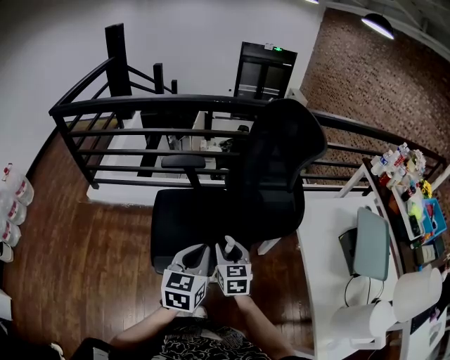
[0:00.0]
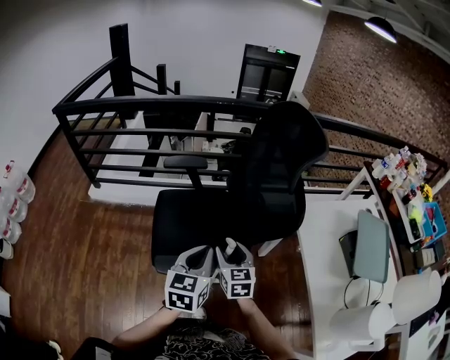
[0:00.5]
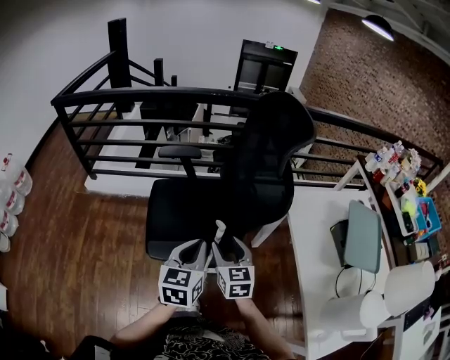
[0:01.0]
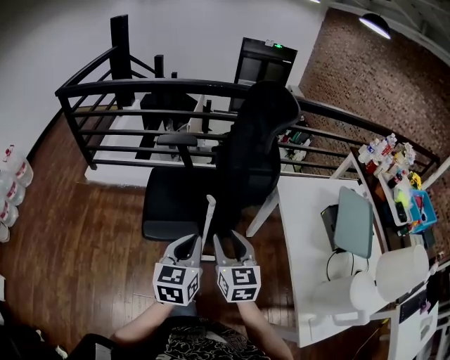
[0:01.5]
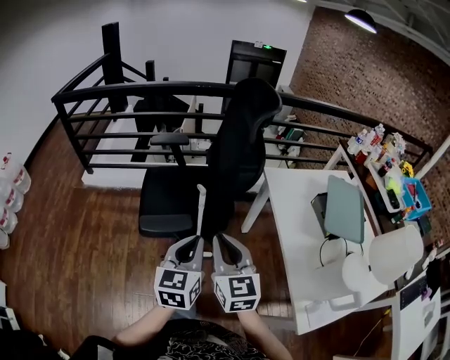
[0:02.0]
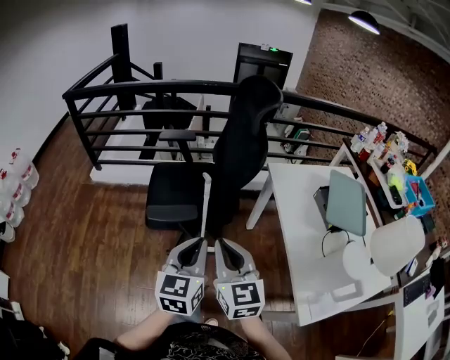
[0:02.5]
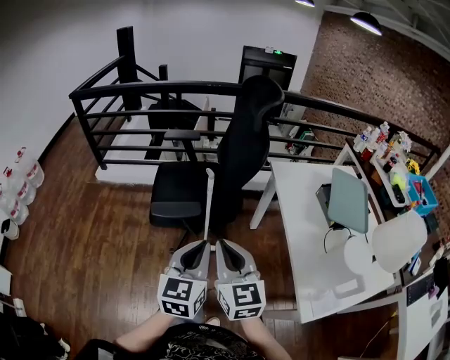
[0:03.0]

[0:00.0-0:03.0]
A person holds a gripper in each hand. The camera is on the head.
0:00.0 to 0:01.5: The left gripper moves backward, some 10 cm. Meanwhile the right gripper goes about 20 cm backward and upward.
0:01.5 to 0:03.0: Both grippers travel together backward, some 15 cm. The right gripper closes up.

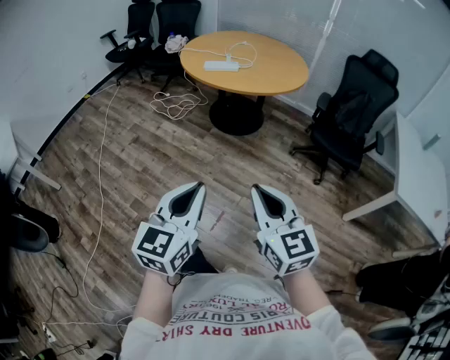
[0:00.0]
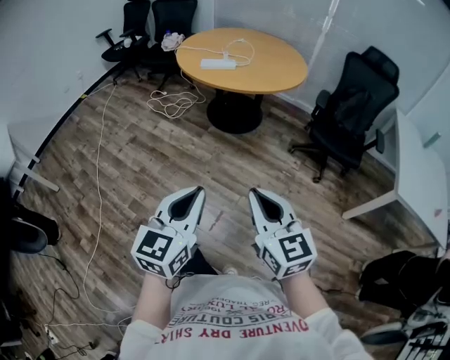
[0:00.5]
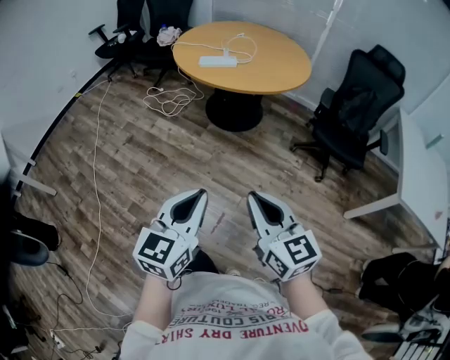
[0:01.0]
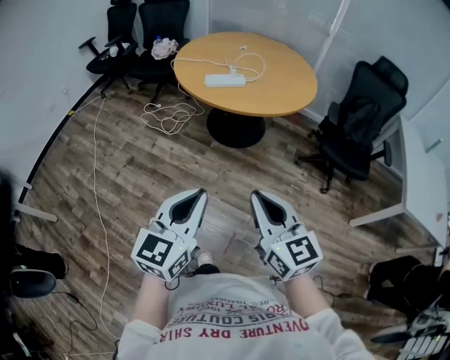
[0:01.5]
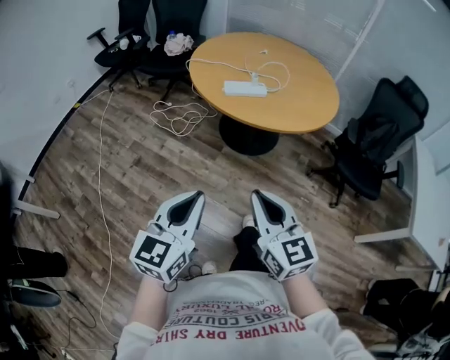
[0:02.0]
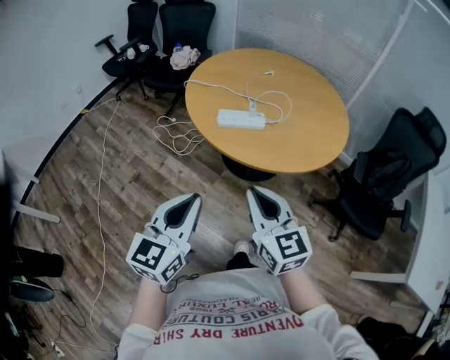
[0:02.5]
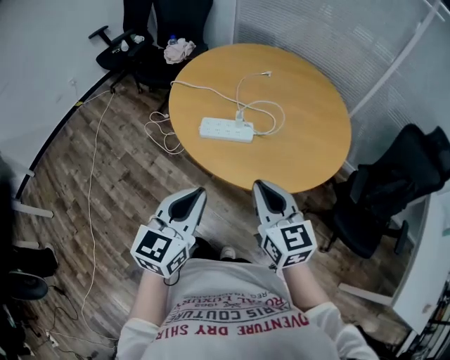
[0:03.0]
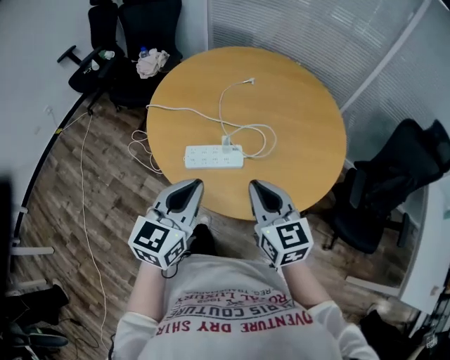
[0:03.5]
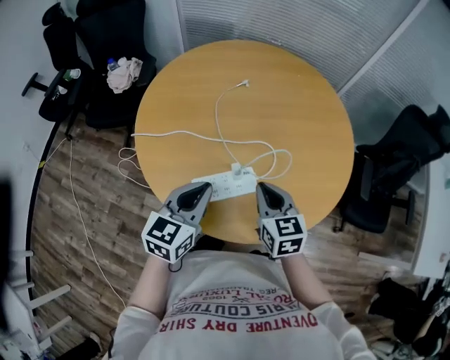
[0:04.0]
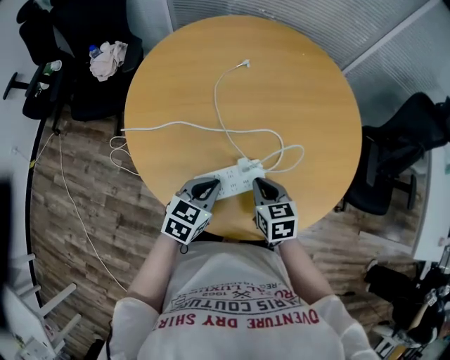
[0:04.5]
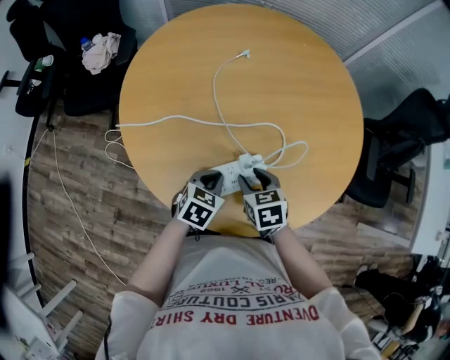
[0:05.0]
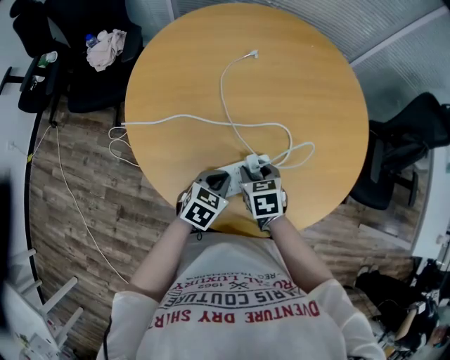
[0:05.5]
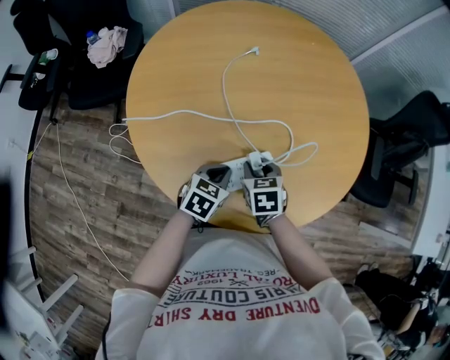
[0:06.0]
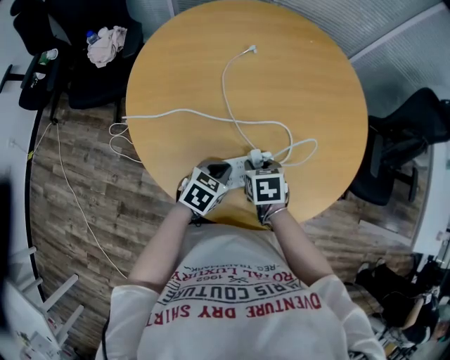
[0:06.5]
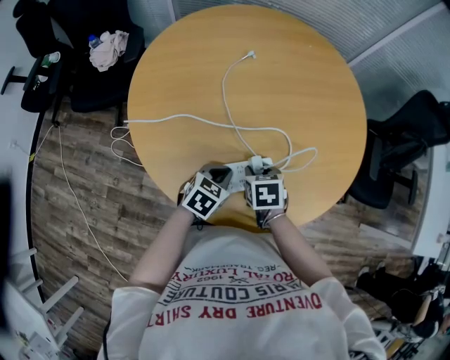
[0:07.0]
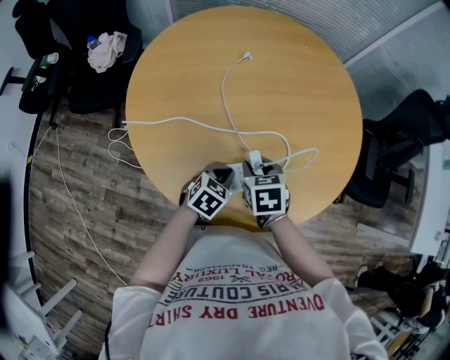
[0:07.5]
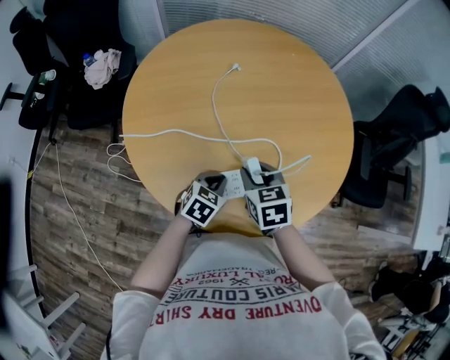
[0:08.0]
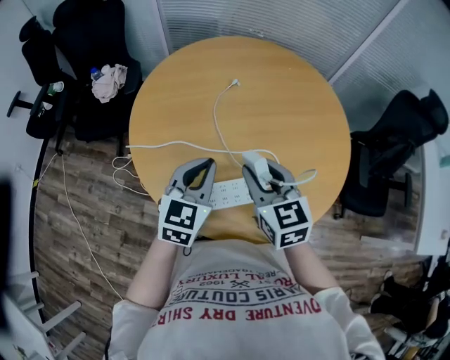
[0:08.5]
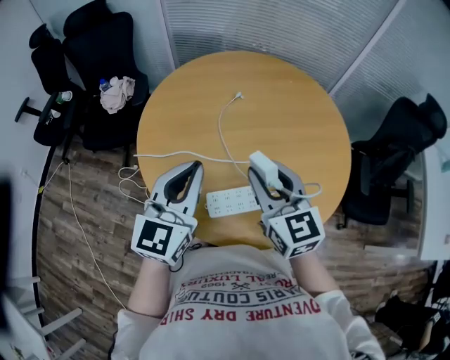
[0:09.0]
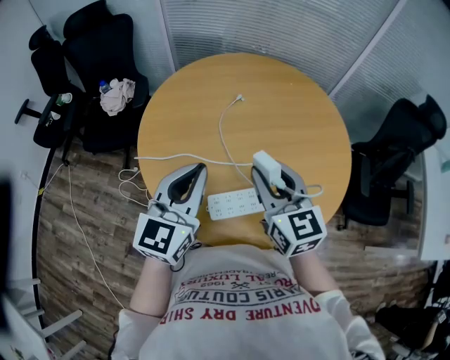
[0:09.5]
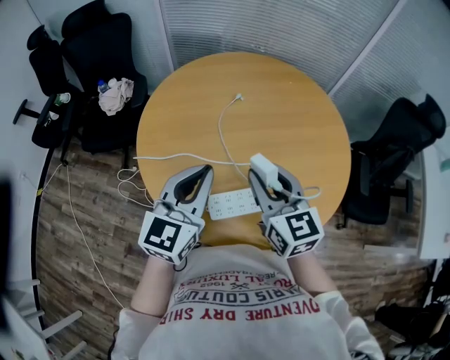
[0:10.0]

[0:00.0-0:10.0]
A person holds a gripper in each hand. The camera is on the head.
0:00.0 to 0:02.0: The grippers both shift forward and to the left by roughly 35 cm.
0:02.0 to 0:04.0: The two grippers travel together, forward, about 60 cm. The right gripper swivels about 30 degrees.
0:04.0 to 0:06.0: The left gripper moves downward, roughly 20 cm, and swivels roughly 30 degrees. Meanwhile the right gripper heads downward and to the left, covering some 15 cm, turns by approximately 30 degrees, and opens.
0:06.0 to 0:08.0: The right gripper travels upward by about 10 cm.
0:08.0 to 0:10.0: The right gripper is displaced upward by about 20 cm, and points its fingers approximately 30 degrees further upward, while the left gripper travels upward by some 30 cm, and angles its fingers upward, by some 40 degrees.

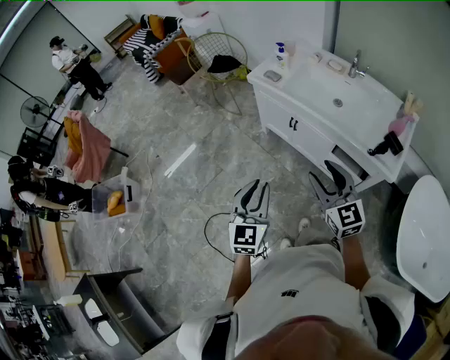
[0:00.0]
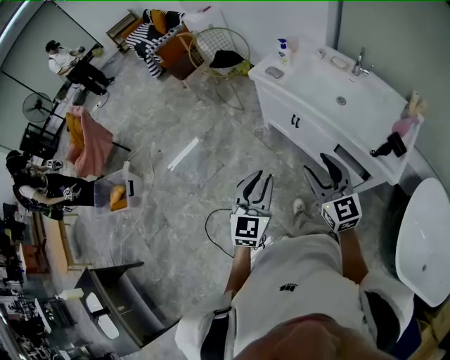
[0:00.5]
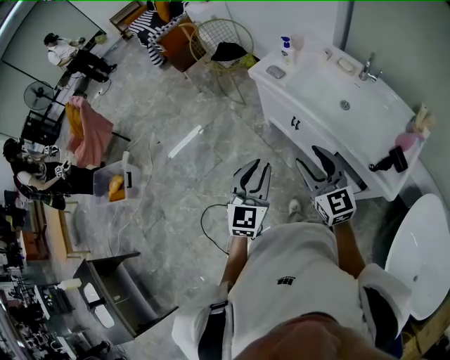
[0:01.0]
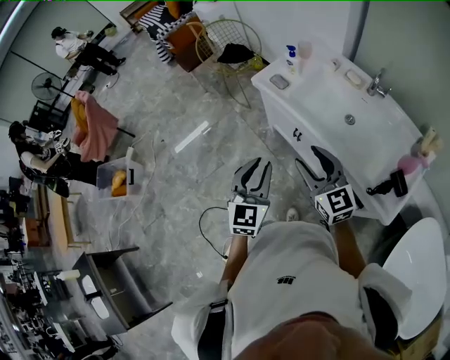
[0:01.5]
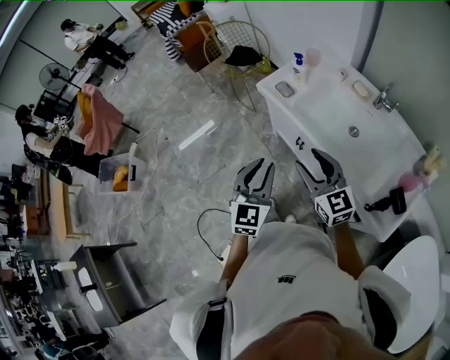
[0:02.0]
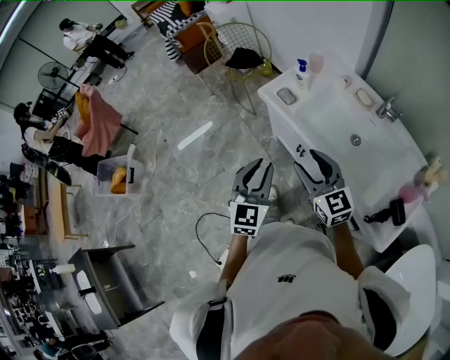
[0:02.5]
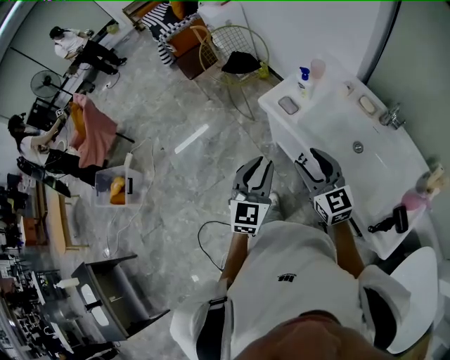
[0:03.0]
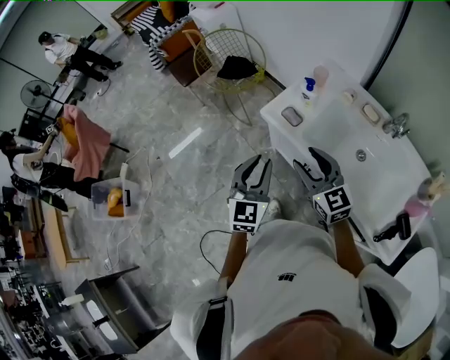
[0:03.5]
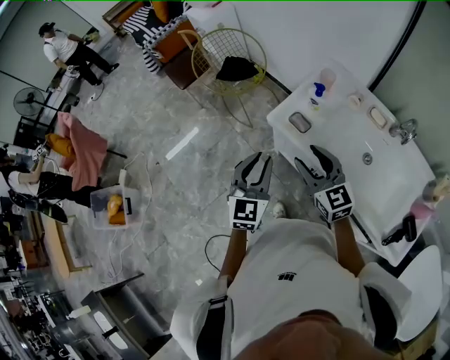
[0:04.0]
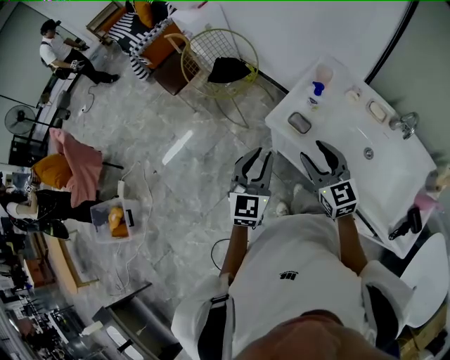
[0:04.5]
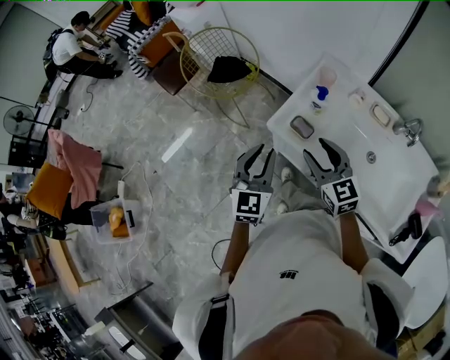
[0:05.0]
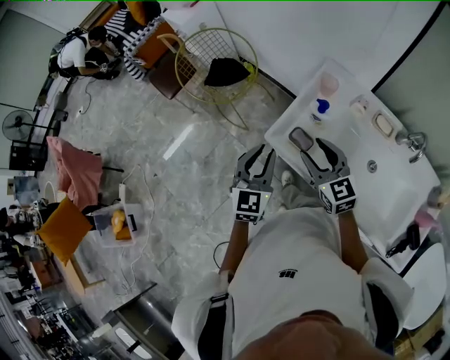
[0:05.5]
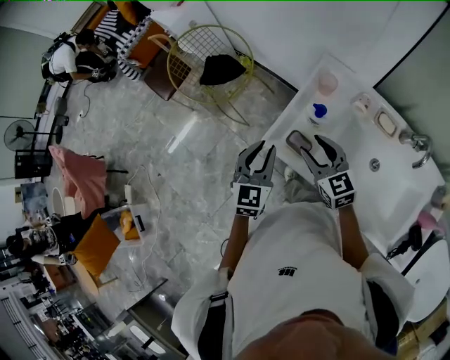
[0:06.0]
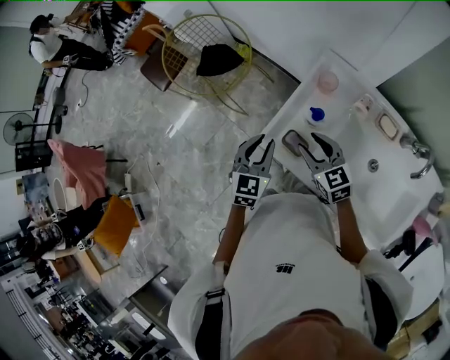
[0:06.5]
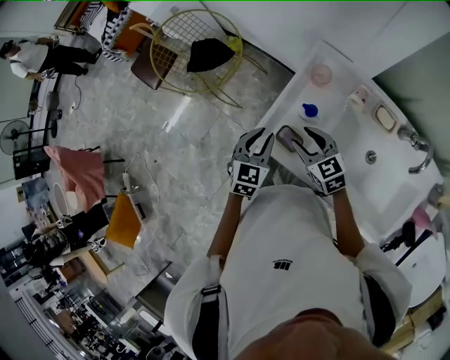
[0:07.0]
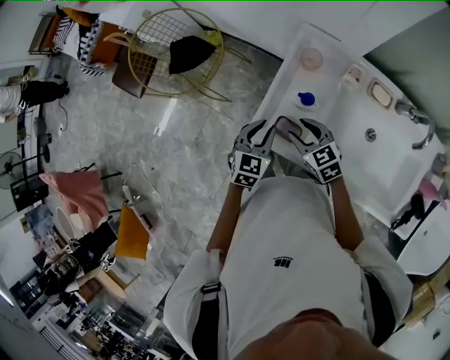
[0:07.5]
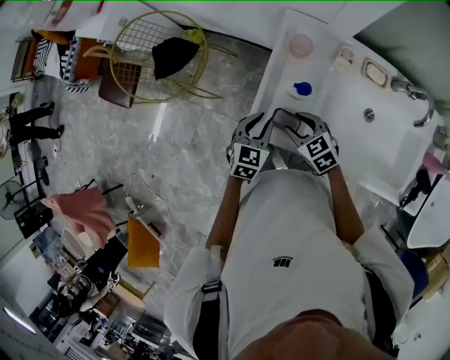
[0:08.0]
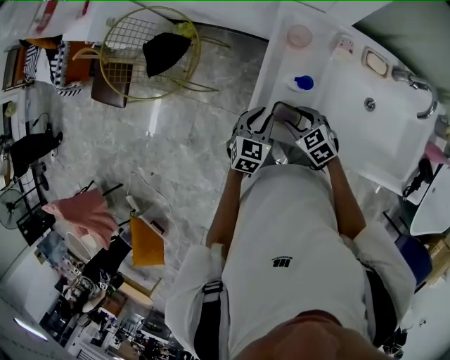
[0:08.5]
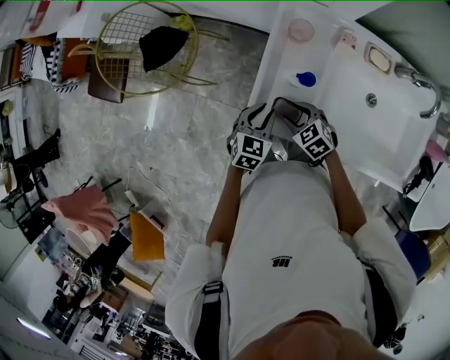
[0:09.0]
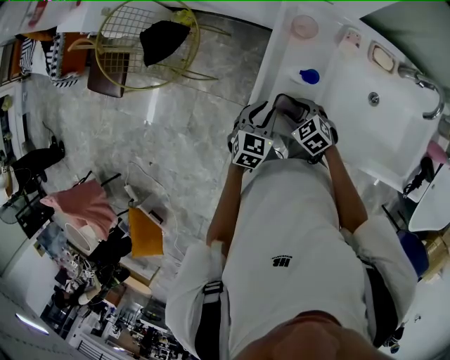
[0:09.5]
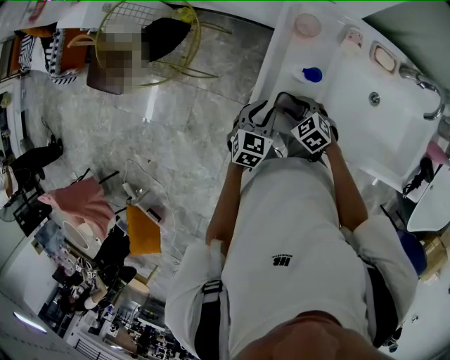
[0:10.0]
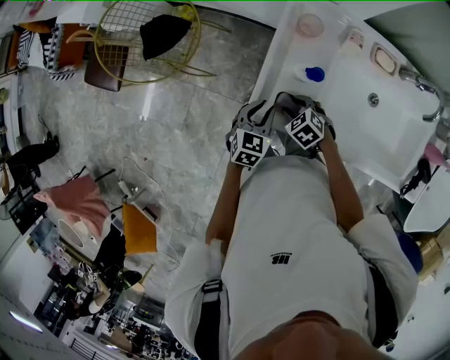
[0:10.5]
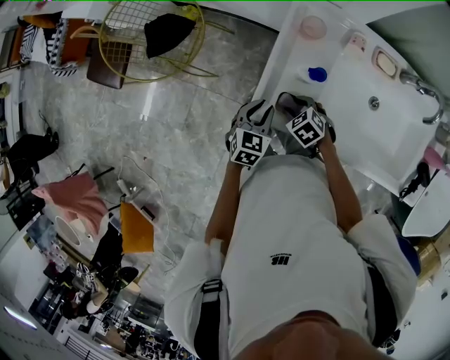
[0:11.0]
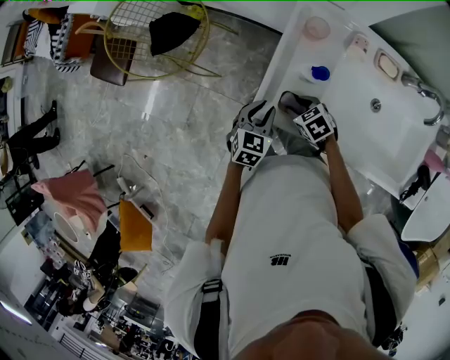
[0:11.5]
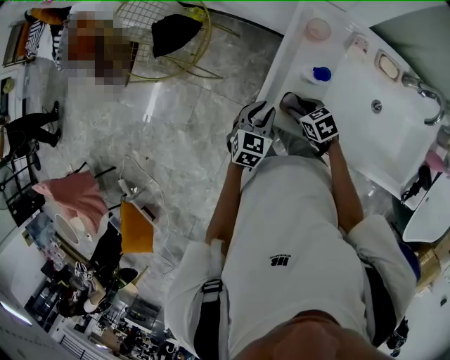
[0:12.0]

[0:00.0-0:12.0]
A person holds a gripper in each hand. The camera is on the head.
0:00.0 to 0:02.0: The right gripper shifts approximately 25 cm forward; the left gripper is displaced forward and to the right by approximately 25 cm.
0:02.0 to 0:04.0: The two grippers go approximately 25 cm forward.
0:04.0 to 0:06.0: The right gripper moves forward and downward, about 20 cm, while the left gripper travels forward by about 20 cm.
0:06.0 to 0:08.0: The right gripper shifts roughly 15 cm downward, and swivels about 30 degrees. Meanwhile the left gripper shifts about 15 cm downward and forward, and swivels roughly 30 degrees.
0:08.0 to 0:10.0: The right gripper moves downward, about 10 cm.
0:10.0 to 0:12.0: The right gripper rotates approximately 20 degrees.

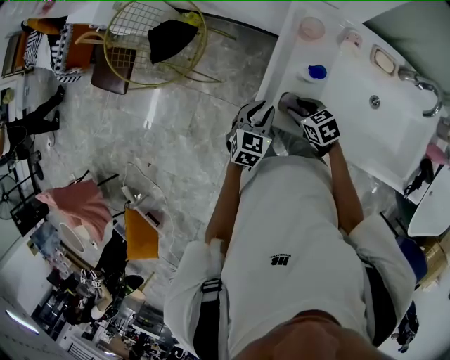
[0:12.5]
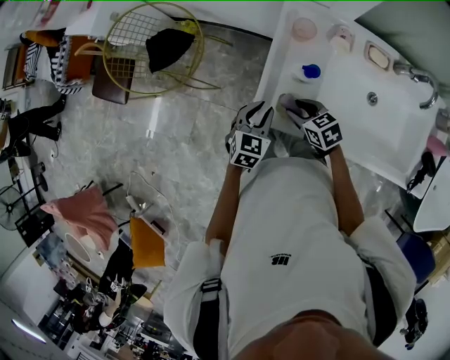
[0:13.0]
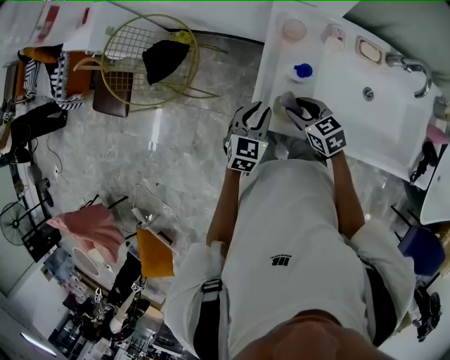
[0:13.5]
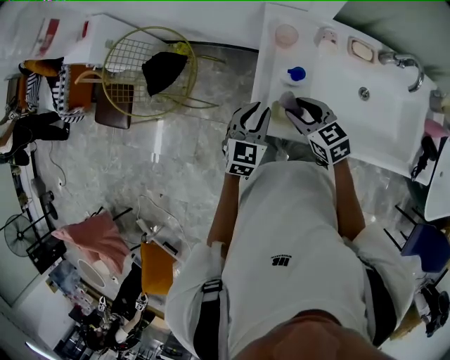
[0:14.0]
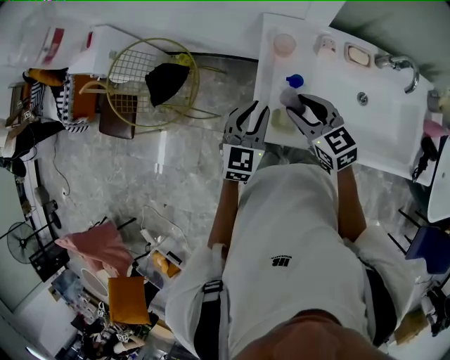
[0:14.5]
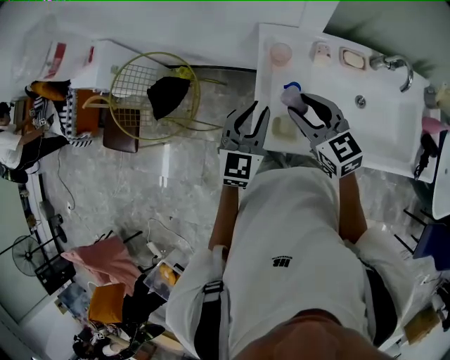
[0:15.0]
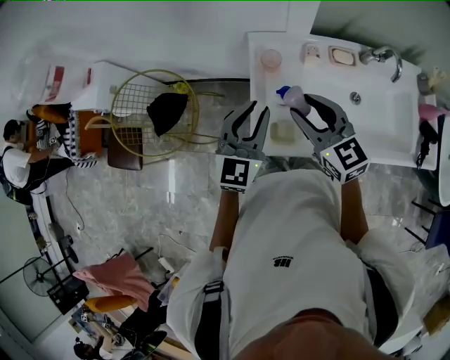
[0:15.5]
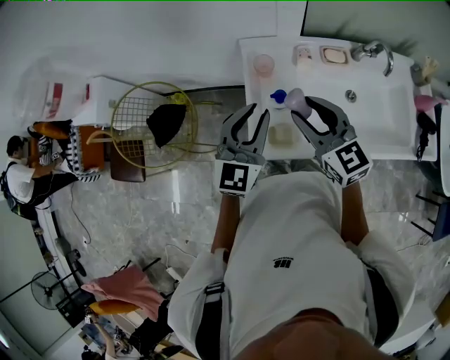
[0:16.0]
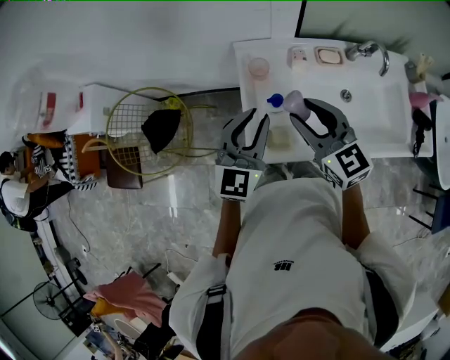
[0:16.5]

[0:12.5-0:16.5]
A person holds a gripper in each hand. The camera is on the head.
0:12.5 to 0:14.5: The two grippers go some 15 cm upward. The right gripper swivels about 30 degrees.
0:14.5 to 0:16.5: The two grippers go approximately 10 cm upward. The right gripper swivels about 20 degrees; the left gripper changes its angle by approximately 20 degrees.
